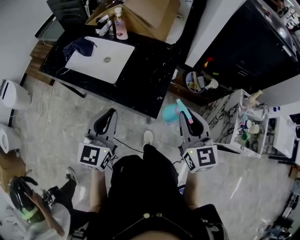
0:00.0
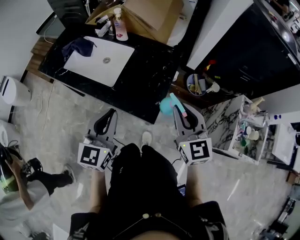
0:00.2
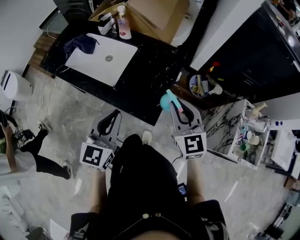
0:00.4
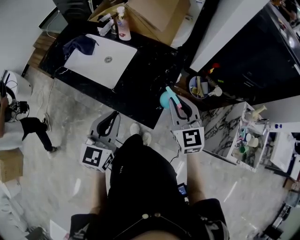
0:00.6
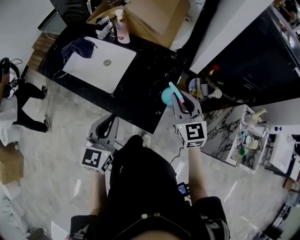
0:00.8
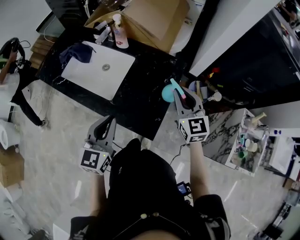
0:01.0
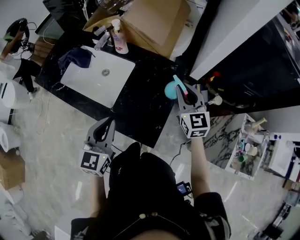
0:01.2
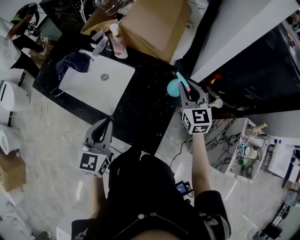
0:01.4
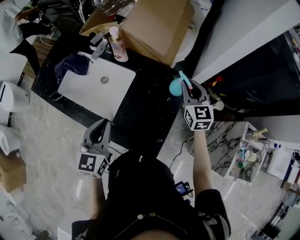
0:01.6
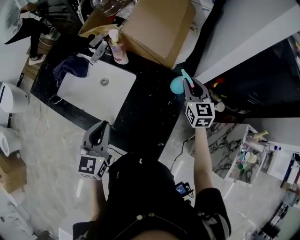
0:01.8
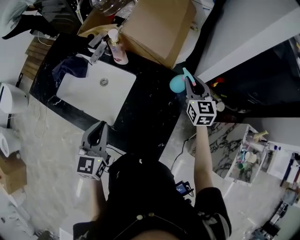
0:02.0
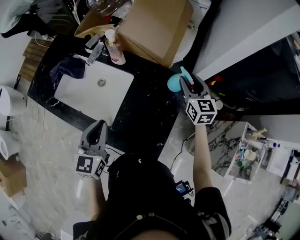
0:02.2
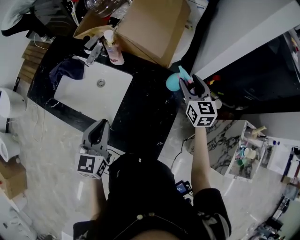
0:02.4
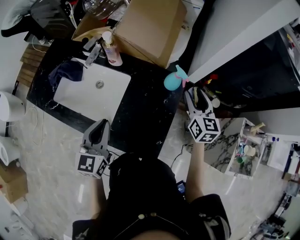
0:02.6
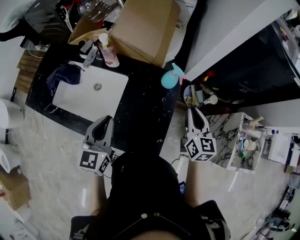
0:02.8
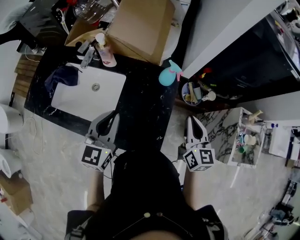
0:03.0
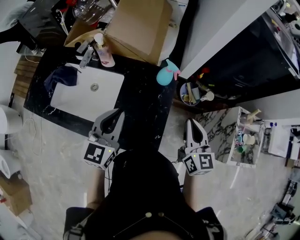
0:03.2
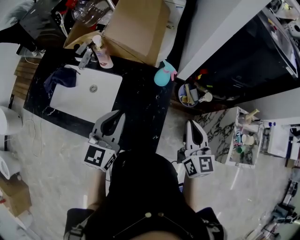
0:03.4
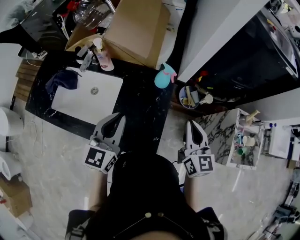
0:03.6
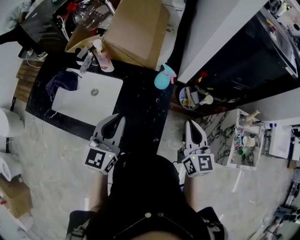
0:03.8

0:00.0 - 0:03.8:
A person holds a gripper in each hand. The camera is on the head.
0:00.0 - 0:01.2: The right gripper heads forward, covering about 25 cm. The left gripper goes approximately 15 cm forward.
0:01.2 - 0:02.6: The left gripper heads forward, covering some 10 cm; the right gripper shifts roughly 10 cm forward and to the right, changes its angle by some 20 degrees, and opens its fingers.
0:02.6 - 0:03.8: The left gripper shifts roughly 10 cm to the right. The right gripper moves backward, some 15 cm, and closes.

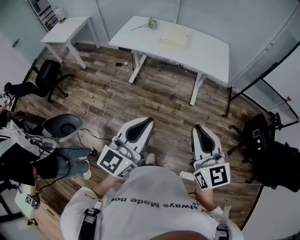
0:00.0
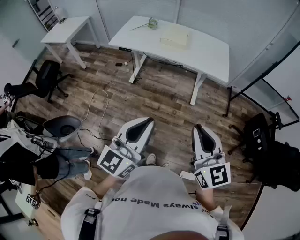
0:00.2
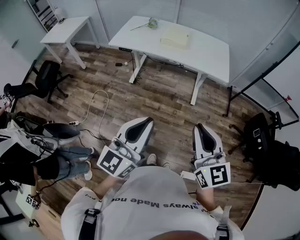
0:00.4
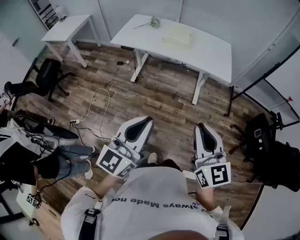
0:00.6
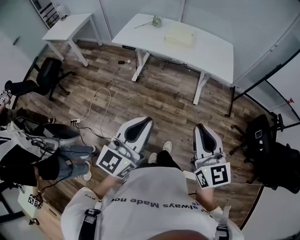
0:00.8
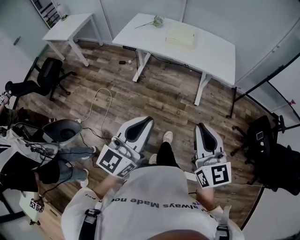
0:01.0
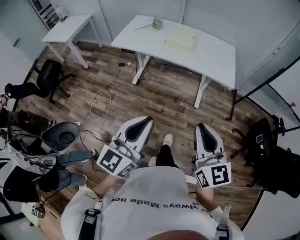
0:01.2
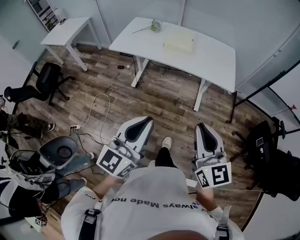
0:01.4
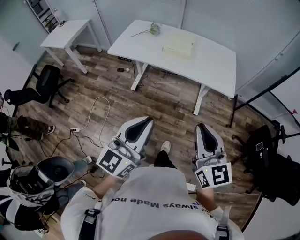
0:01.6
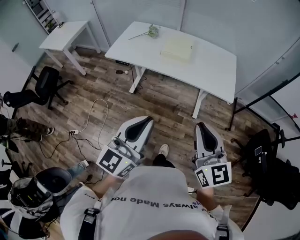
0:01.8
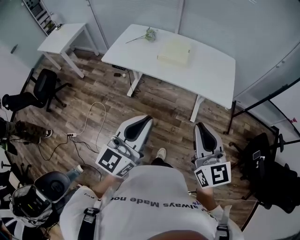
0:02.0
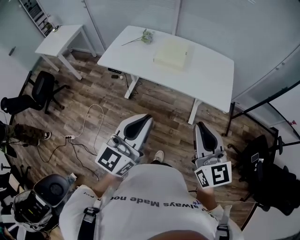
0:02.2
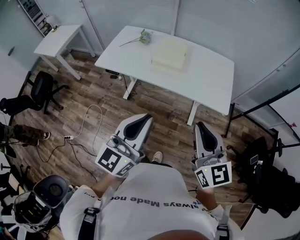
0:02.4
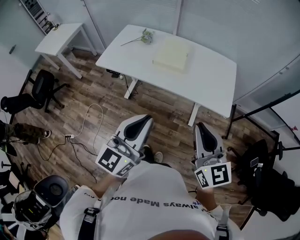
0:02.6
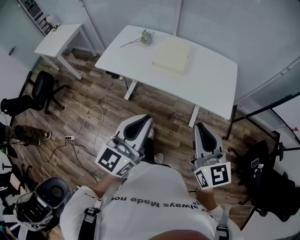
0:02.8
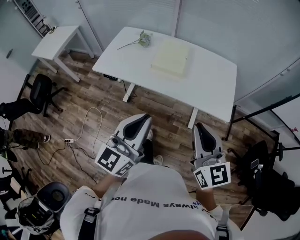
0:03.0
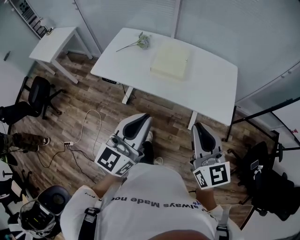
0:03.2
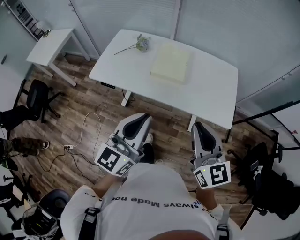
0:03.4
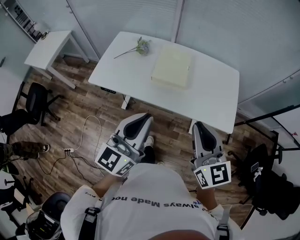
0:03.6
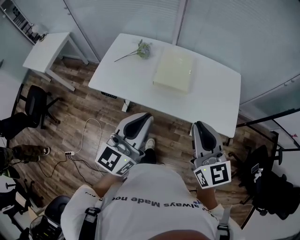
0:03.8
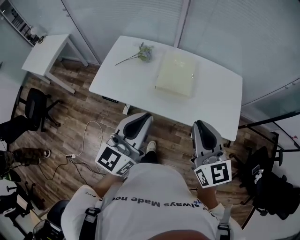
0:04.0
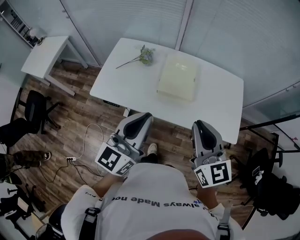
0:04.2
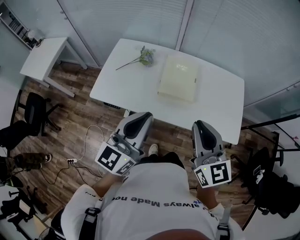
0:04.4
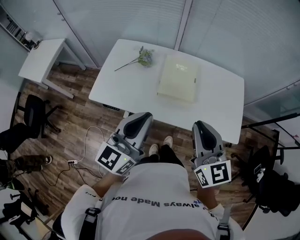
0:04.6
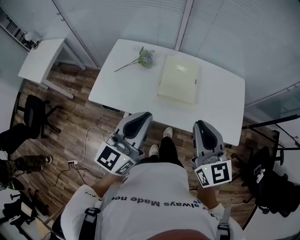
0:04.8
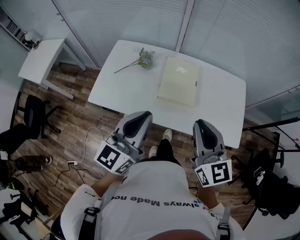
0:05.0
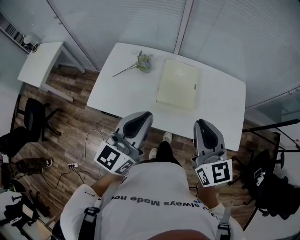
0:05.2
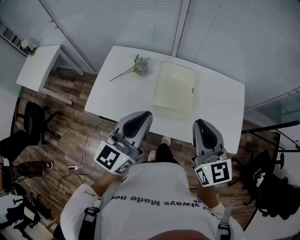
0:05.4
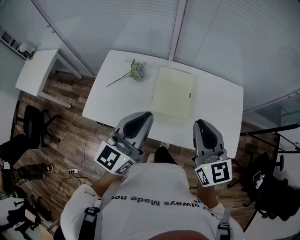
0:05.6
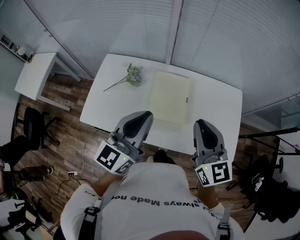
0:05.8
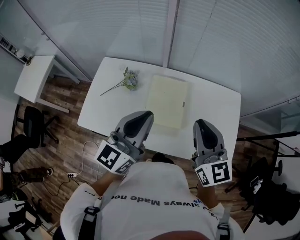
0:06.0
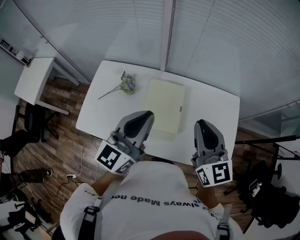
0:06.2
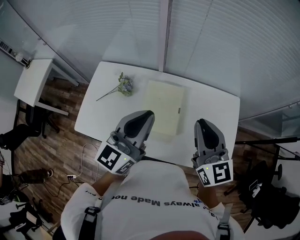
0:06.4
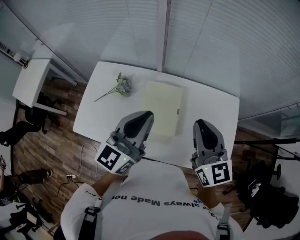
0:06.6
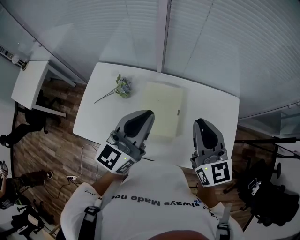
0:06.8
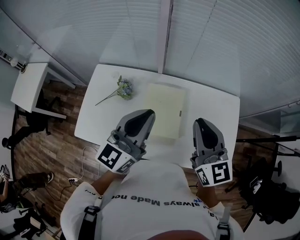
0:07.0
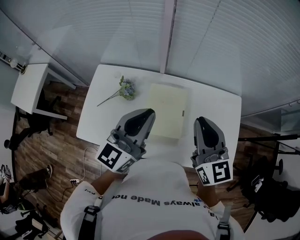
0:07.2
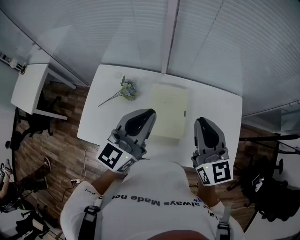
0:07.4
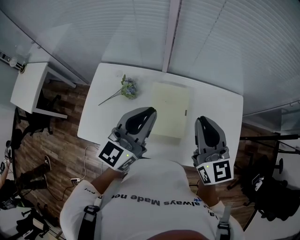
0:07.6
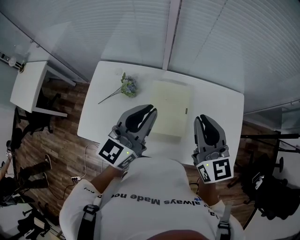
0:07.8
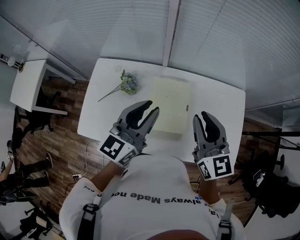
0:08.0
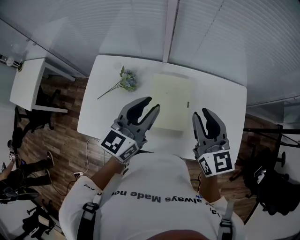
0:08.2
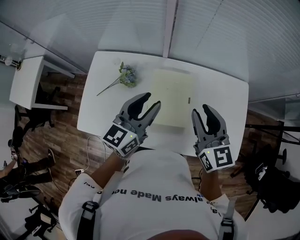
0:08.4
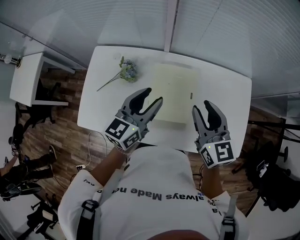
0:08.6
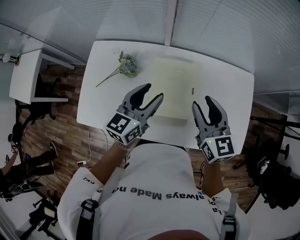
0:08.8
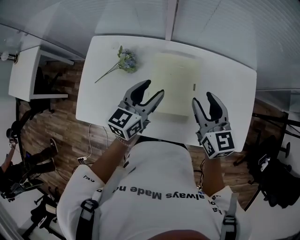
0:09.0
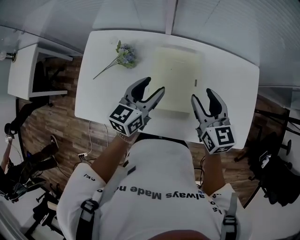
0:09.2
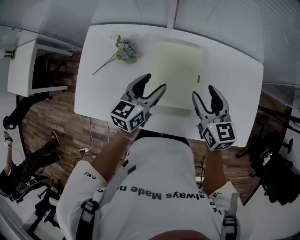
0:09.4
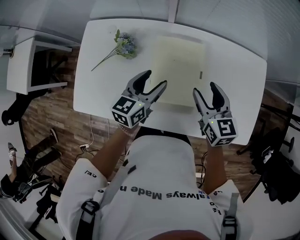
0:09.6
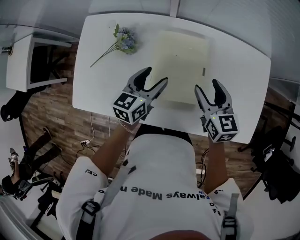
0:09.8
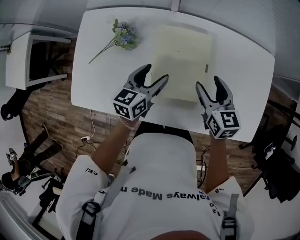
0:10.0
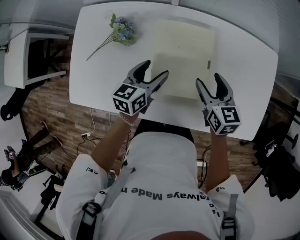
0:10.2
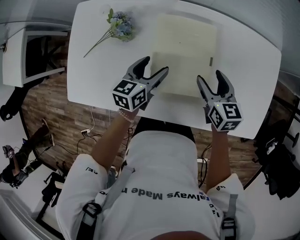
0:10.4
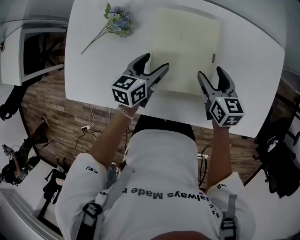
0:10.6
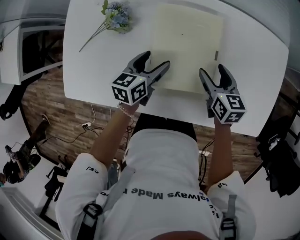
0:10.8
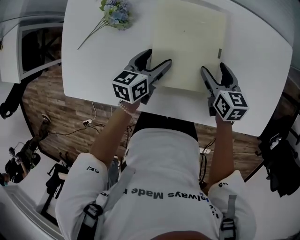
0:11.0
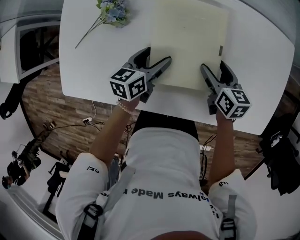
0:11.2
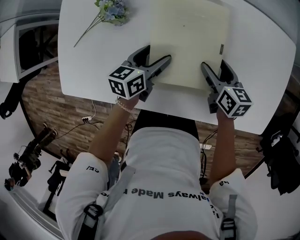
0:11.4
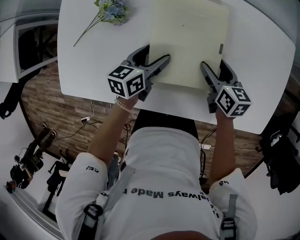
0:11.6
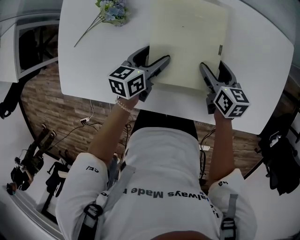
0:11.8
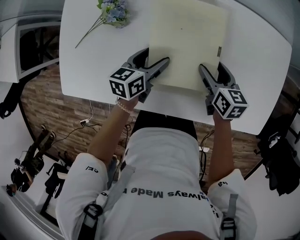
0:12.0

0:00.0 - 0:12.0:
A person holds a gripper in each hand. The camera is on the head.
0:00.0 - 0:01.6: Both grippers travel together forward, roughly 15 cm.
0:01.6 - 0:03.0: The grippers both shift forward by about 25 cm.
0:03.0 - 0:04.4: Both grippers travel together forward and to the left, some 25 cm.
0:04.4 - 0:06.0: The grippers both shift forward by some 20 cm.
0:06.0 - 0:07.6: Both grippers move forward, some 10 cm.
0:07.6 - 0:09.0: The grippers both shift downward by about 15 cm. The left gripper swivels roughly 20 degrees, and opens up, while the right gripper opens up.
0:09.0 - 0:10.4: Both grippers move downward, about 20 cm.
0:10.4 - 0:12.0: Both grippers travel together downward, about 5 cm.

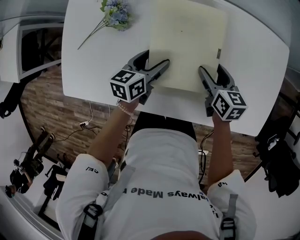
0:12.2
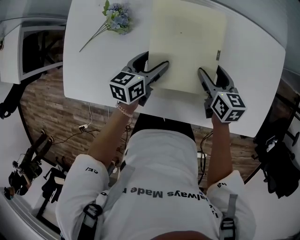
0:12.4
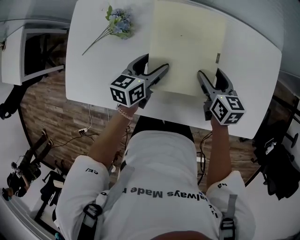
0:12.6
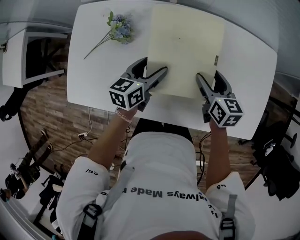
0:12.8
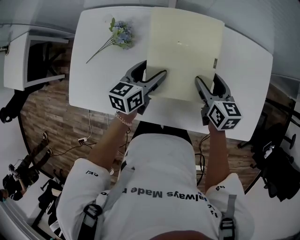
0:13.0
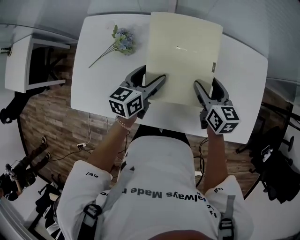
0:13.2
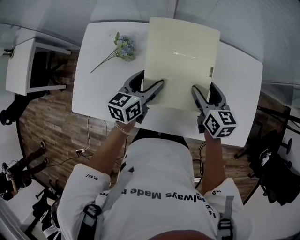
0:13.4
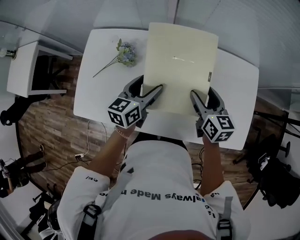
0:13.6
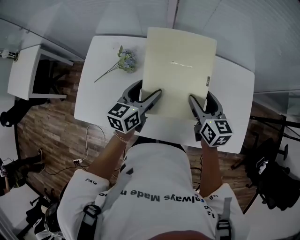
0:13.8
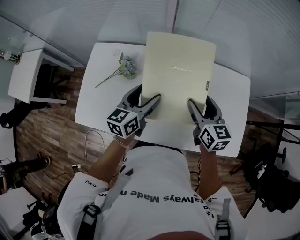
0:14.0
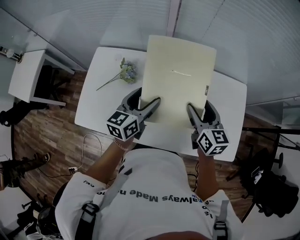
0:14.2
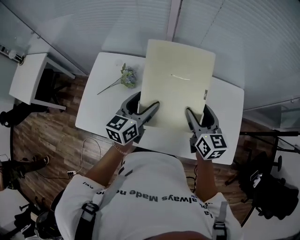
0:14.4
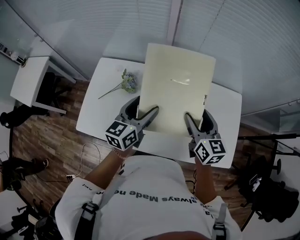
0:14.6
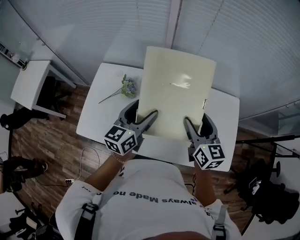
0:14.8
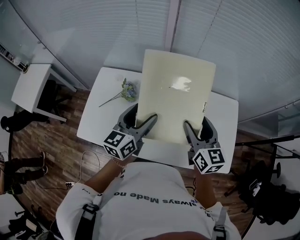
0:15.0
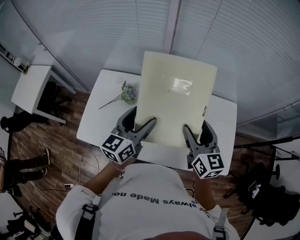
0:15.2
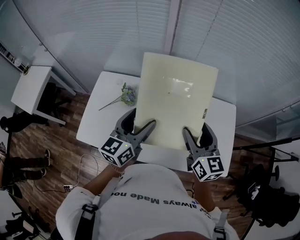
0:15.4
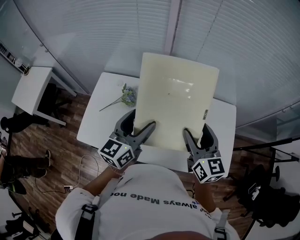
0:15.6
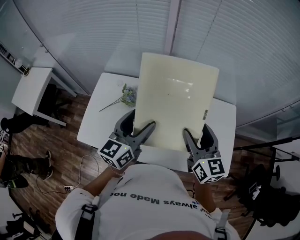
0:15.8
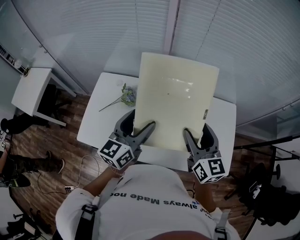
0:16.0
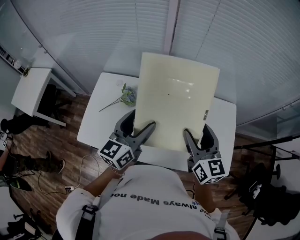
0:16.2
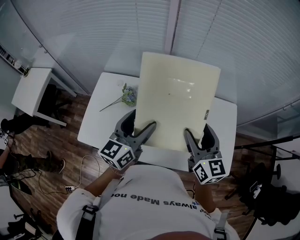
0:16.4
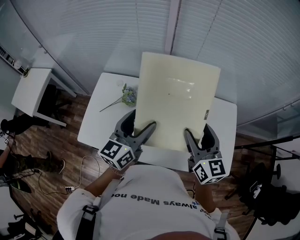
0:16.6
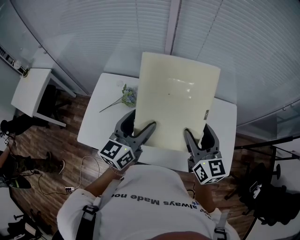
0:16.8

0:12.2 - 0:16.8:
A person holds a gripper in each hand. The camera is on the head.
0:12.2 - 0:13.8: The two grippers go about 20 cm upward.
0:13.8 - 0:15.2: Both grippers travel together upward, some 15 cm.
0:15.2 - 0:16.8: The grippers make only small movements.

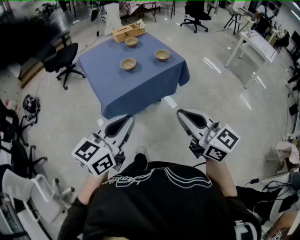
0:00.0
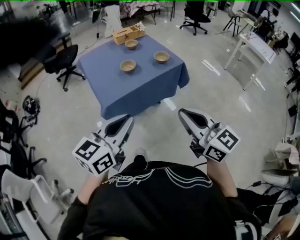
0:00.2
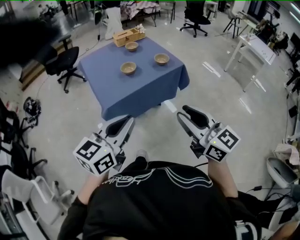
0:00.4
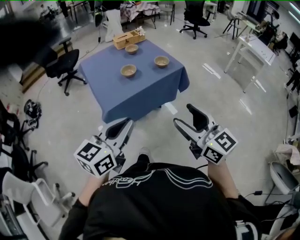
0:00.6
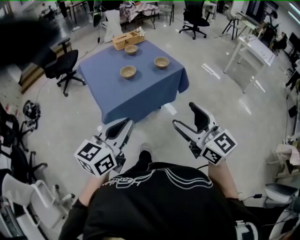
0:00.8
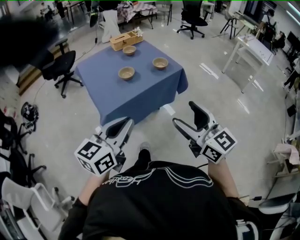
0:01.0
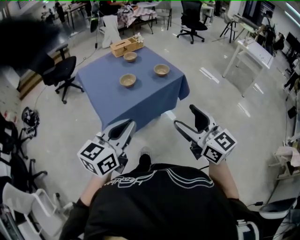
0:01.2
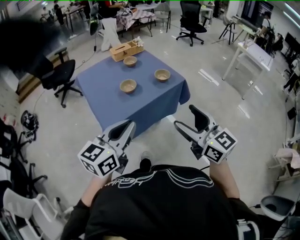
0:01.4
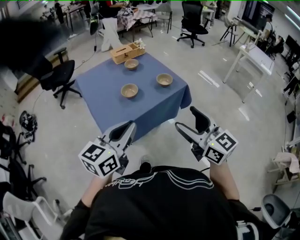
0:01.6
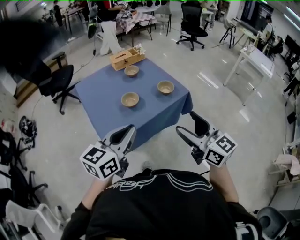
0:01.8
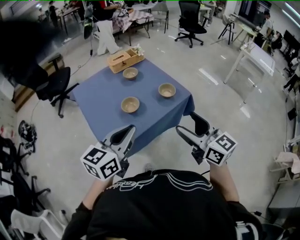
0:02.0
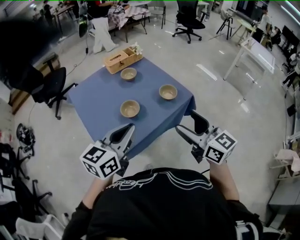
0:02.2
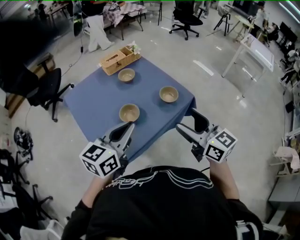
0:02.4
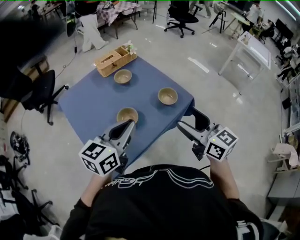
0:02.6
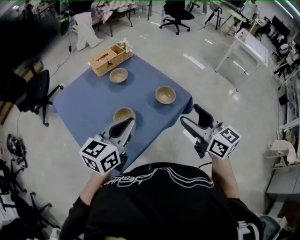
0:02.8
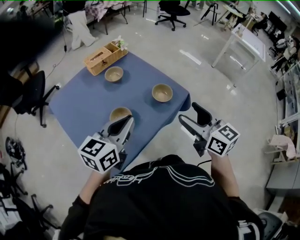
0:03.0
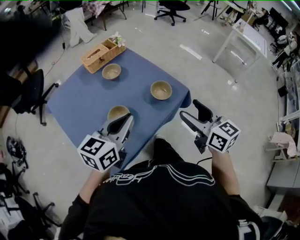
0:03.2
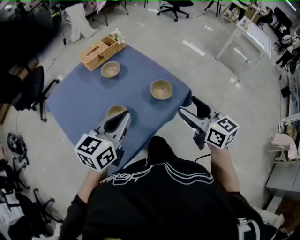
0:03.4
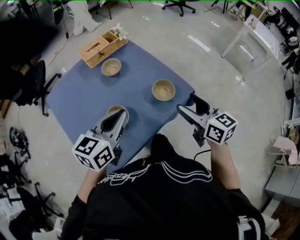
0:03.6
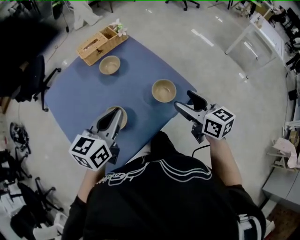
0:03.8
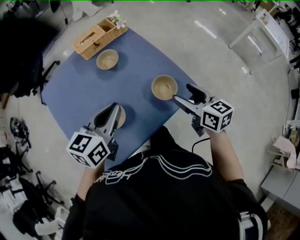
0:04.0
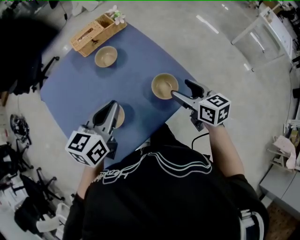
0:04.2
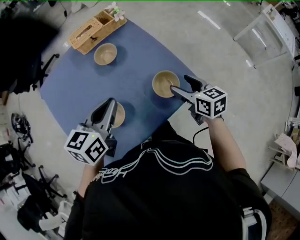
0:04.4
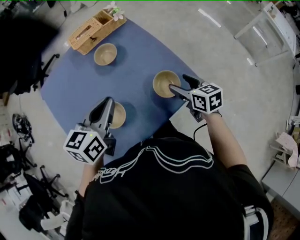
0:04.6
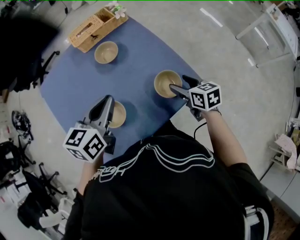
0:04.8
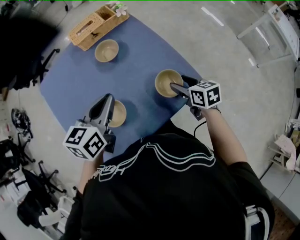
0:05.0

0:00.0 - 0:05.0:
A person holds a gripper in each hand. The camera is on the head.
0:00.0 - 0:01.6: Both grippers travel together forward, about 15 cm. The right gripper opens its fingers.
0:01.6 - 0:03.4: The two grippers go roughly 35 cm forward. The right gripper swivels approximately 20 degrees.
0:03.4 - 0:05.0: The left gripper travels forward and downward by about 15 cm, and changes its angle by roughly 20 degrees; the right gripper travels downward and forward by some 30 cm, and turns by approximately 30 degrees.
